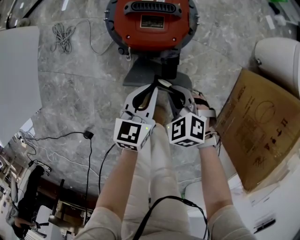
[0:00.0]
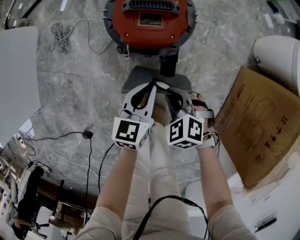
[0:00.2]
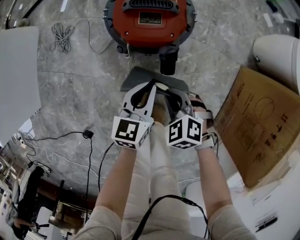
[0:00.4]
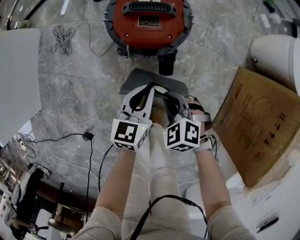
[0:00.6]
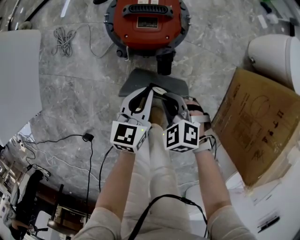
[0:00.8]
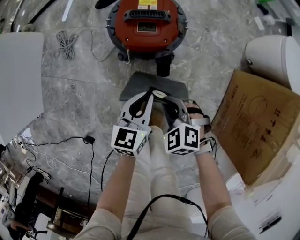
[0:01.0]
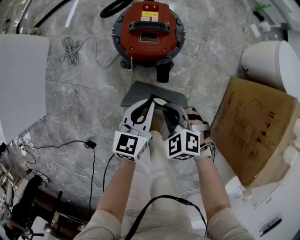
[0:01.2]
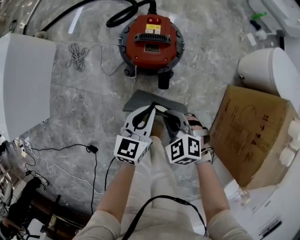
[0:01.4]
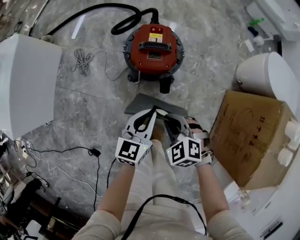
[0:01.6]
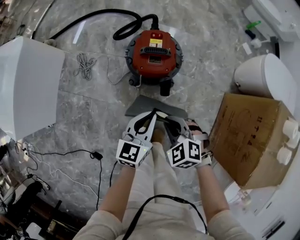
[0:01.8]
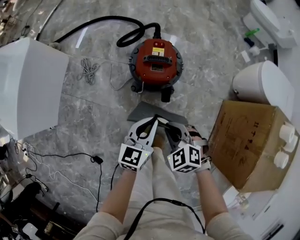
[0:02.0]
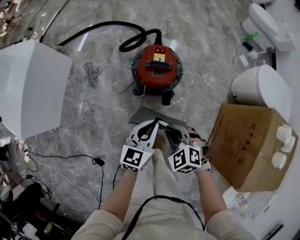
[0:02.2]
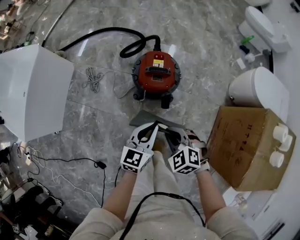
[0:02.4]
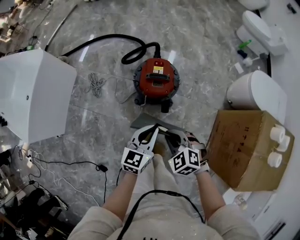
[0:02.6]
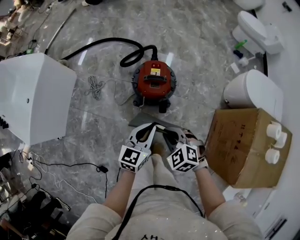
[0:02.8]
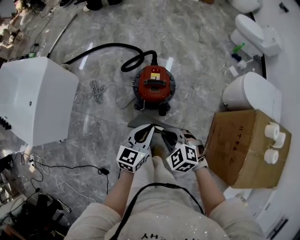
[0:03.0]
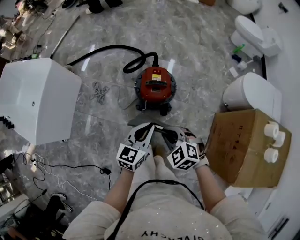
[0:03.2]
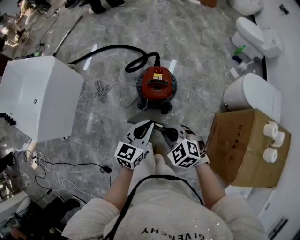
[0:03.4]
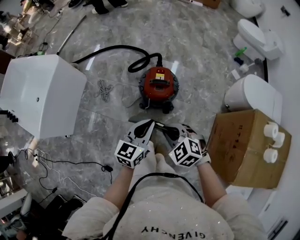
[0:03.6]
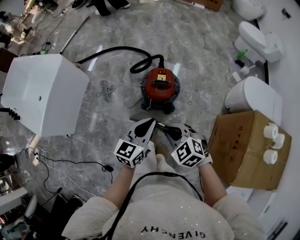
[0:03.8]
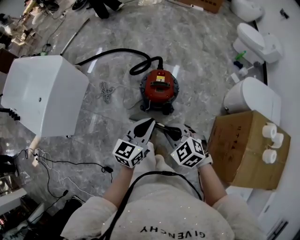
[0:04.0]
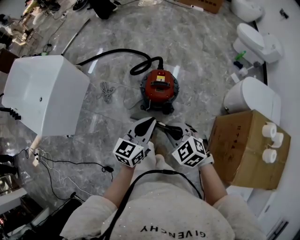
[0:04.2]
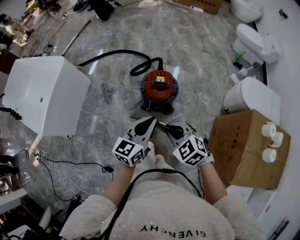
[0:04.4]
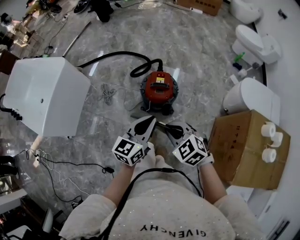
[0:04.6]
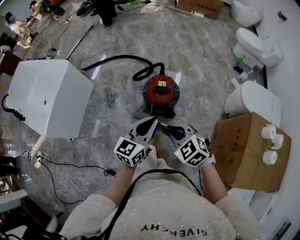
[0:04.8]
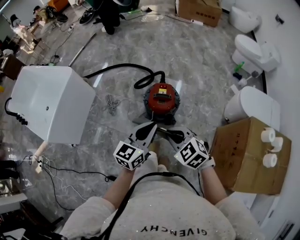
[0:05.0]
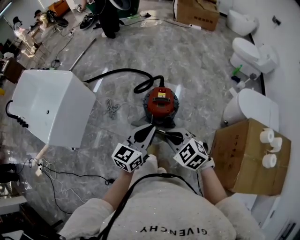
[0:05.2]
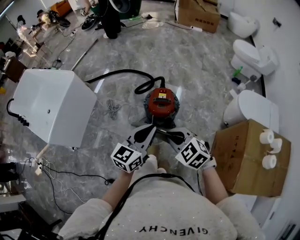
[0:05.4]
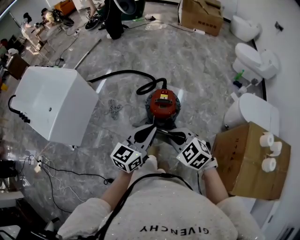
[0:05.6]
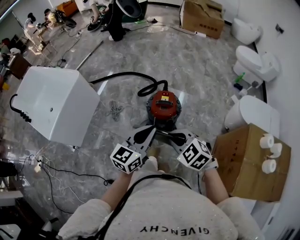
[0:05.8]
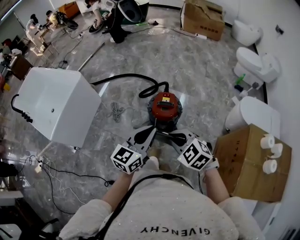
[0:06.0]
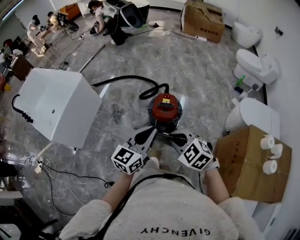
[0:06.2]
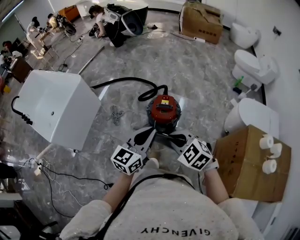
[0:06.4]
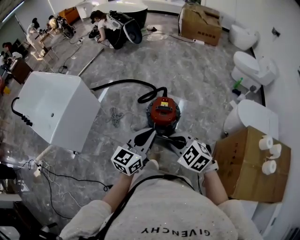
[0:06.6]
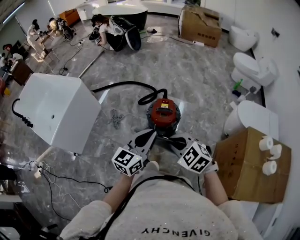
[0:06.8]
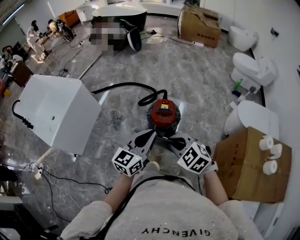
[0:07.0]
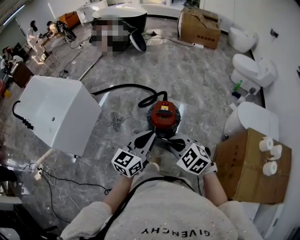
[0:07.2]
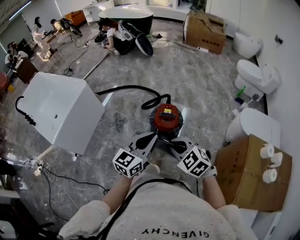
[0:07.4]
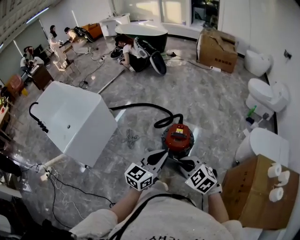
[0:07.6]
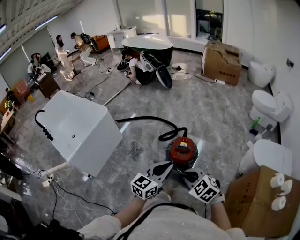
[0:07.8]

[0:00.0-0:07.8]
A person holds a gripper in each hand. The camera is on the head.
0:00.0 to 0:01.6: Both grippers move upward, some 15 cm.
0:01.6 to 0:03.2: Both grippers move upward, roughly 20 cm.
0:03.2 to 0:04.6: Both grippers move upward, about 10 cm.
0:04.6 to 0:06.2: Both grippers move upward, roughly 5 cm.
0:06.2 to 0:07.8: There are only small adjustments of the grippers.

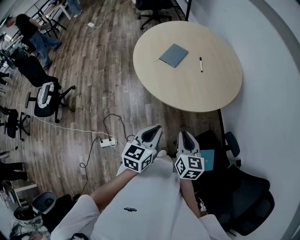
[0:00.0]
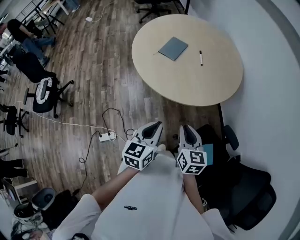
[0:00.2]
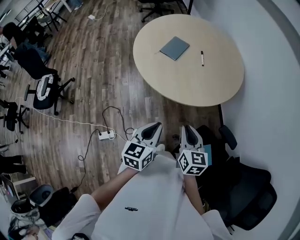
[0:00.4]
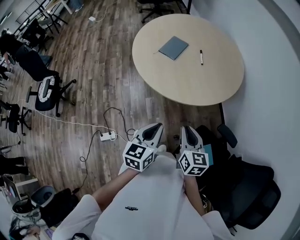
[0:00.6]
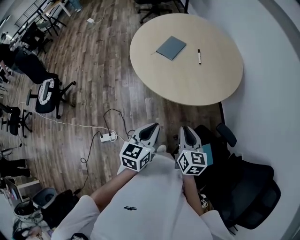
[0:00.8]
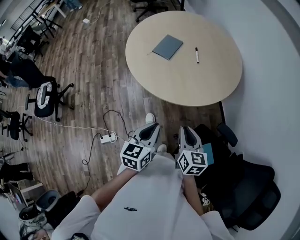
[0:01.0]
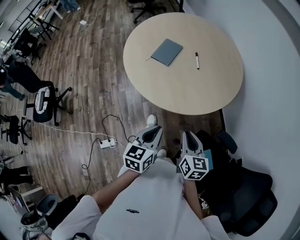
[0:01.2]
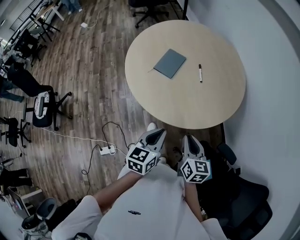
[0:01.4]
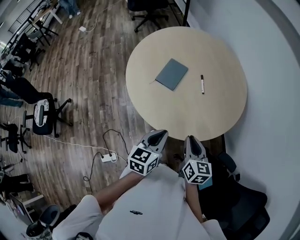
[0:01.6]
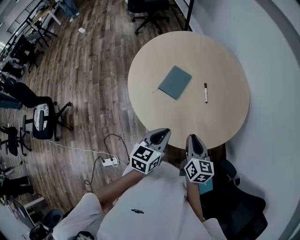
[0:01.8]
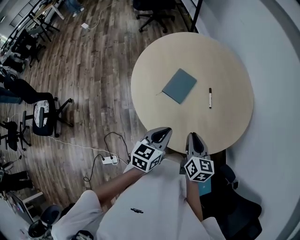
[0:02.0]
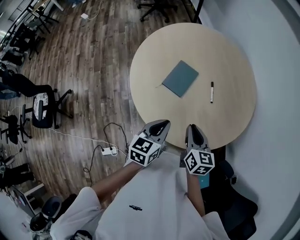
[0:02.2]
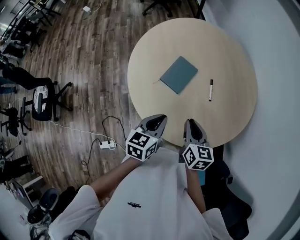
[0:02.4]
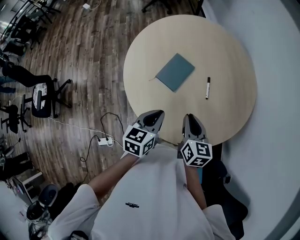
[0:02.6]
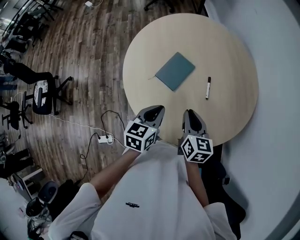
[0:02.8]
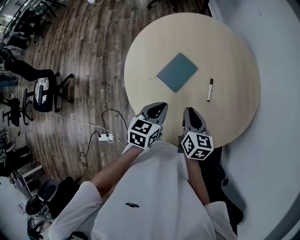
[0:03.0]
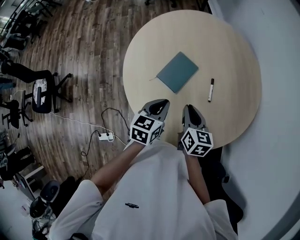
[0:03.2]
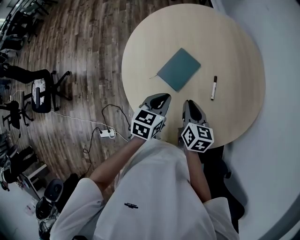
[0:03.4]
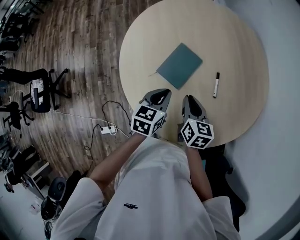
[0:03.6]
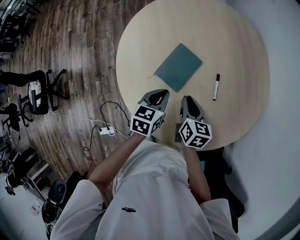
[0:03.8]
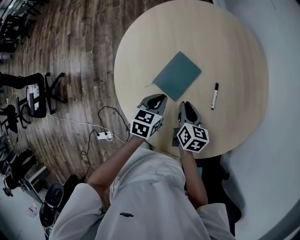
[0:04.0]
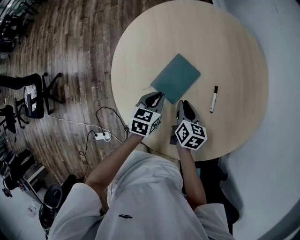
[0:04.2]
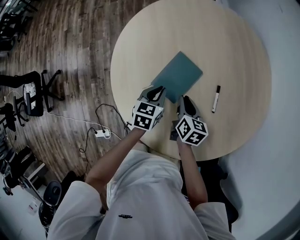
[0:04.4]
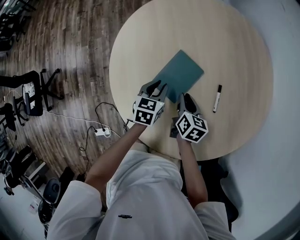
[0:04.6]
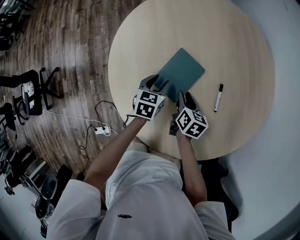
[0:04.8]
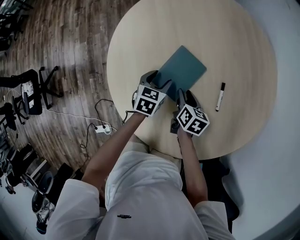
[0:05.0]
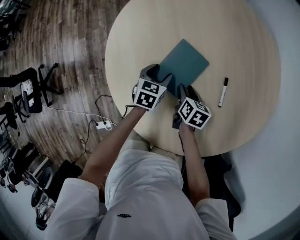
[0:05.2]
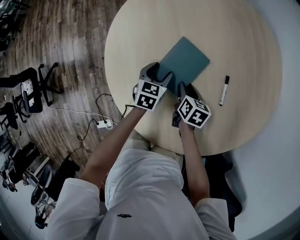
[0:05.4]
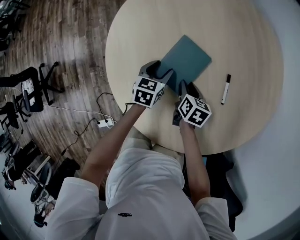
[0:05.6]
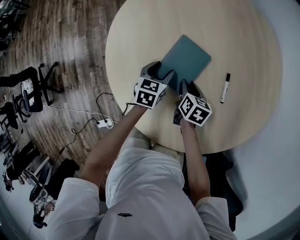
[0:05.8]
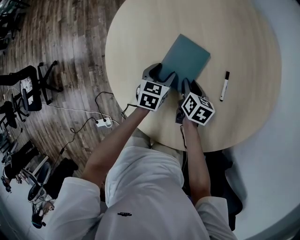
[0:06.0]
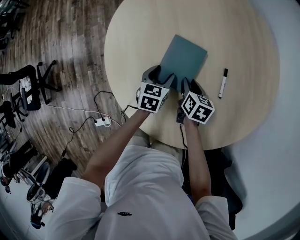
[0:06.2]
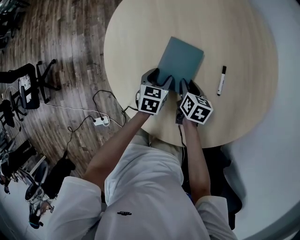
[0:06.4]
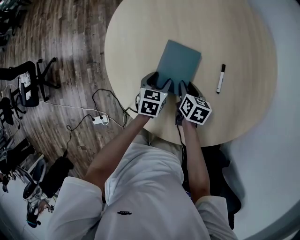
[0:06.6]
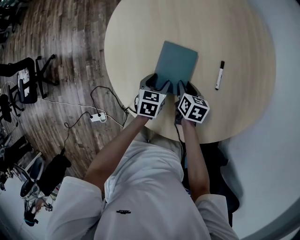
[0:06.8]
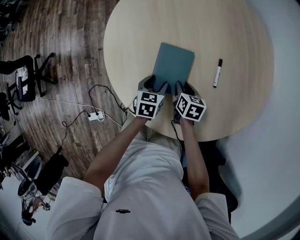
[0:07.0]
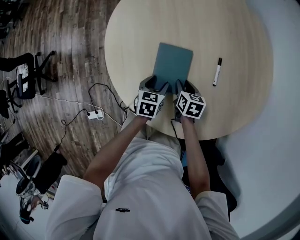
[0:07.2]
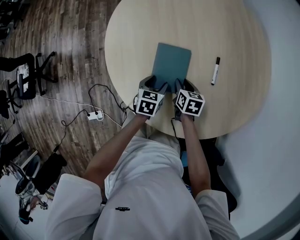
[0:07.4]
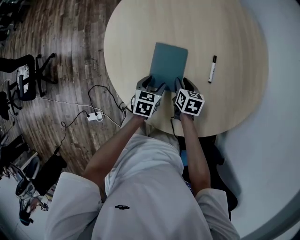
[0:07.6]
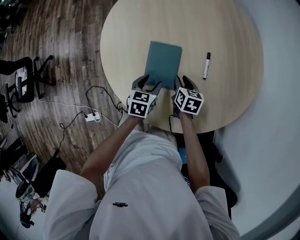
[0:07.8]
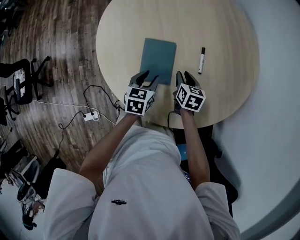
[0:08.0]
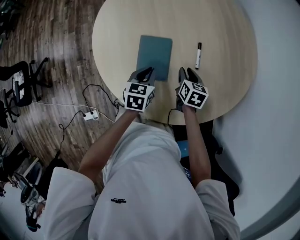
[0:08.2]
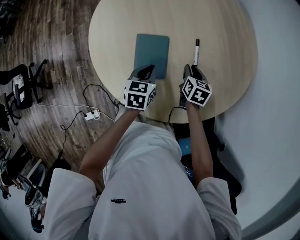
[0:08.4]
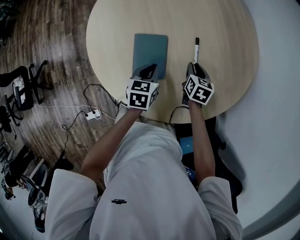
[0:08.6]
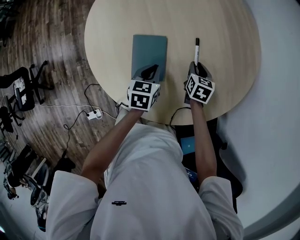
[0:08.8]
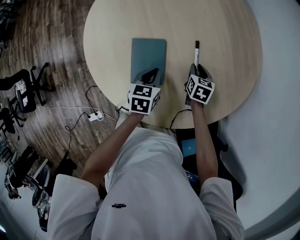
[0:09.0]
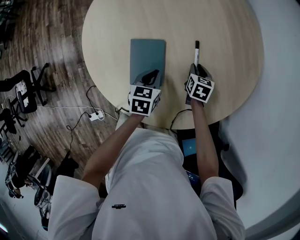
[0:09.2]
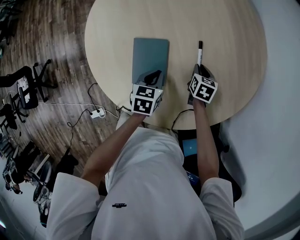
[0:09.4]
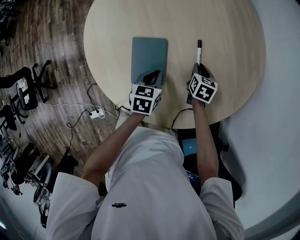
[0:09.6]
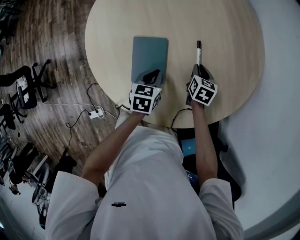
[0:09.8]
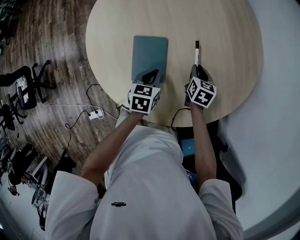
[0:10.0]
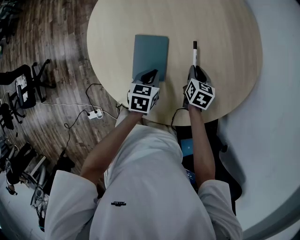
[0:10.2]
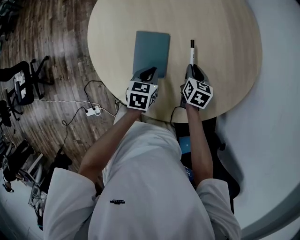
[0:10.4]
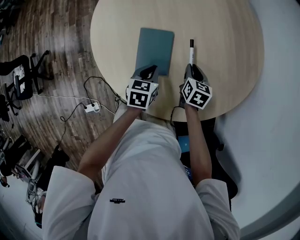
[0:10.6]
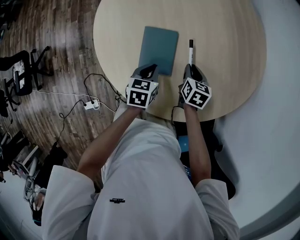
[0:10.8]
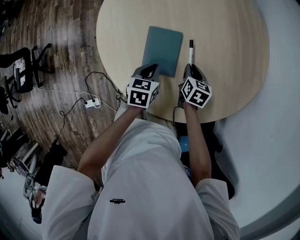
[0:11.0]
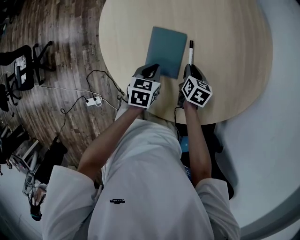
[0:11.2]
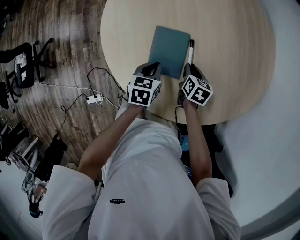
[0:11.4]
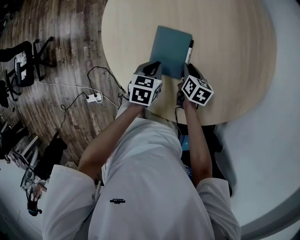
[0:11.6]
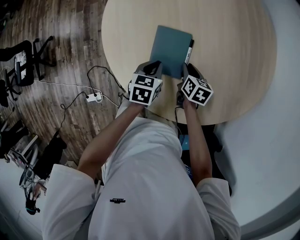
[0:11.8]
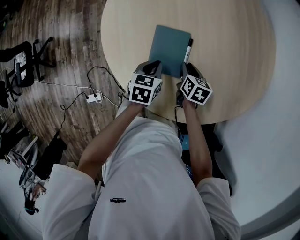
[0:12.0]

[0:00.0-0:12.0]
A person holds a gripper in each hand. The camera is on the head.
0:00.0 to 0:01.6: The two grippers go roughly 25 cm forward.
0:01.6 to 0:03.0: The two grippers go about 25 cm forward.
0:03.0 to 0:04.4: Both grippers travel together downward and forward, approximately 25 cm.
0:04.4 to 0:06.0: Both grippers travel together downward, about 10 cm. The left gripper opens.
0:06.0 to 0:07.6: The left gripper moves backward, approximately 15 cm, while the right gripper moves backward, approximately 10 cm.
0:07.6 to 0:09.0: The left gripper is displaced to the right and forward by some 10 cm, and closes its fingers. The right gripper moves to the right and forward, some 15 cm.
0:09.0 to 0:10.4: The right gripper ends up about 5 cm from where it was.
0:10.4 to 0:12.0: The left gripper shifts about 5 cm to the left. Meanwhile the right gripper travels to the left by roughly 10 cm.

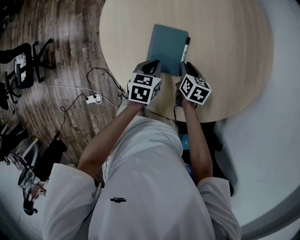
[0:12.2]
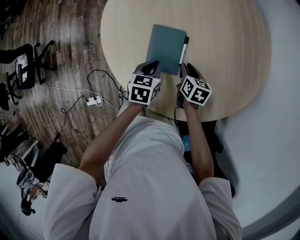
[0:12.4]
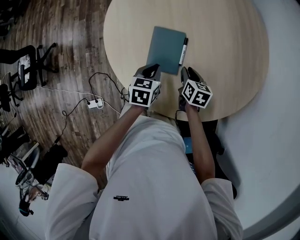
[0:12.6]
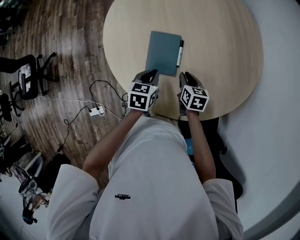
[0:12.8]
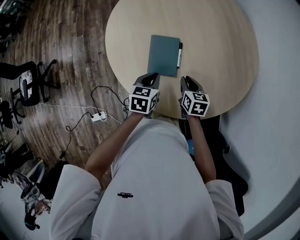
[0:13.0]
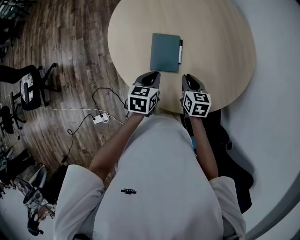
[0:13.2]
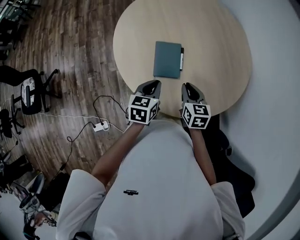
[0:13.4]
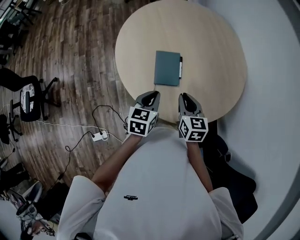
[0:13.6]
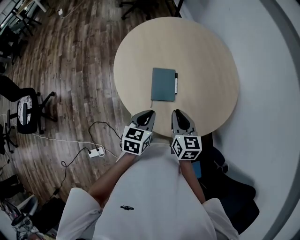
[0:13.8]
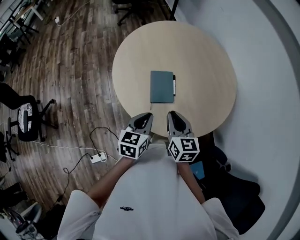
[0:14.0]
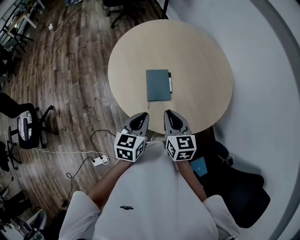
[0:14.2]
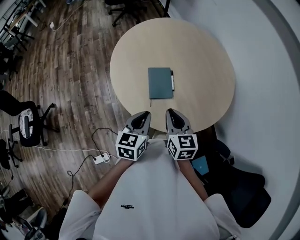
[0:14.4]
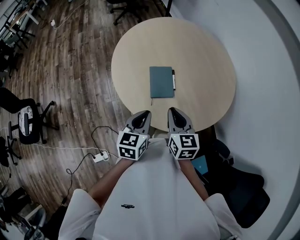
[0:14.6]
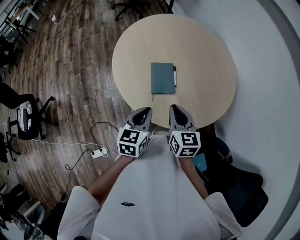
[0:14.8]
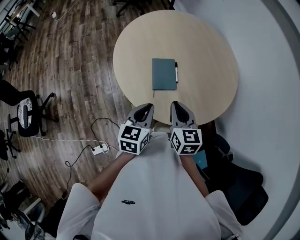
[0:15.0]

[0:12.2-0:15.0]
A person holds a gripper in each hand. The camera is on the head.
0:12.2 to 0:13.6: The grippers both shift upward and backward by about 30 cm. The right gripper swivels approximately 30 degrees.
0:13.6 to 0:15.0: The left gripper shifts about 10 cm backward and upward. The right gripper shifts roughly 10 cm upward and backward.

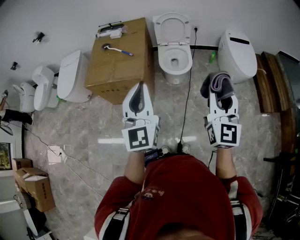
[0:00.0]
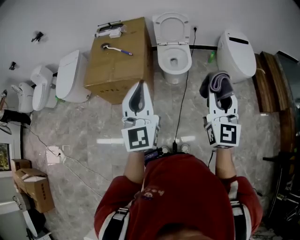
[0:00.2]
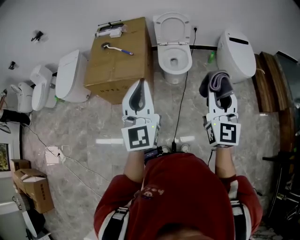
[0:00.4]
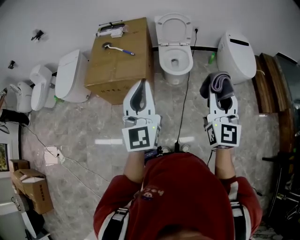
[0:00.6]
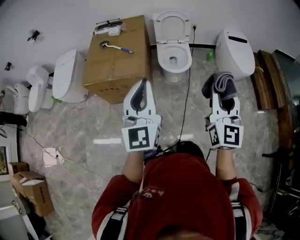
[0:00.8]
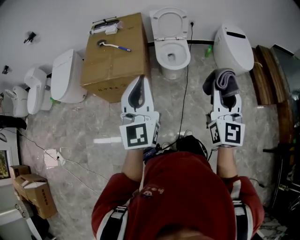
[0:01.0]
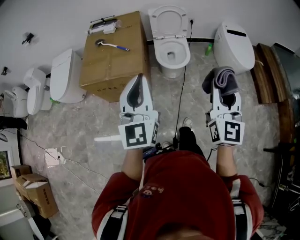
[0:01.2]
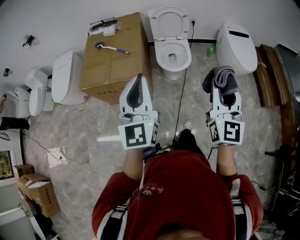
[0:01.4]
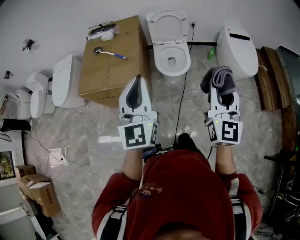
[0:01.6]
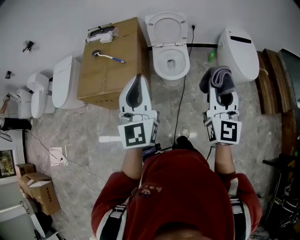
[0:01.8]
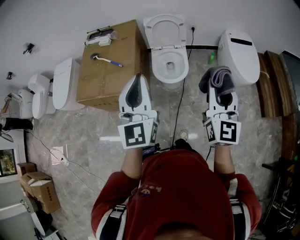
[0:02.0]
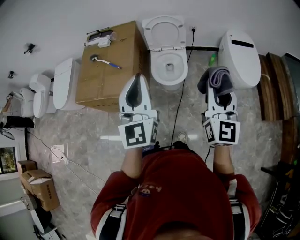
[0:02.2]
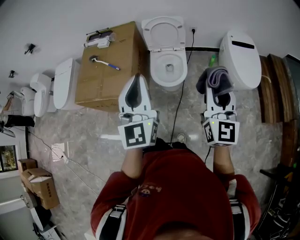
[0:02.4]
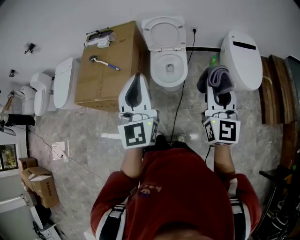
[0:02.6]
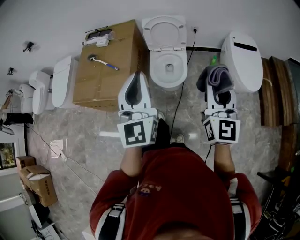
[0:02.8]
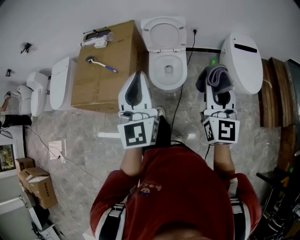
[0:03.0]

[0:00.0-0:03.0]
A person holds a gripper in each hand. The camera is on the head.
0:00.0 to 0:01.6: The two grippers go approximately 10 cm forward.
0:01.6 to 0:03.0: Both grippers travel together forward and to the right, about 20 cm.
